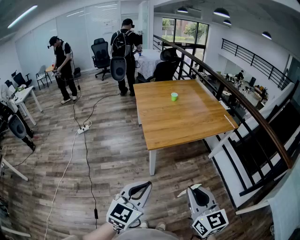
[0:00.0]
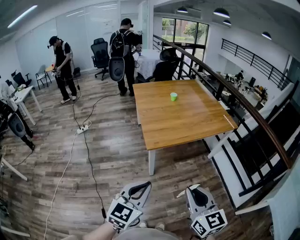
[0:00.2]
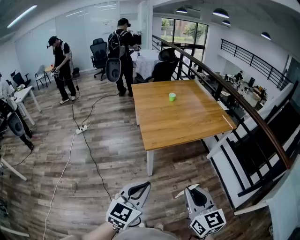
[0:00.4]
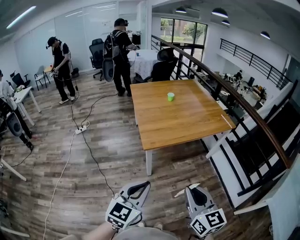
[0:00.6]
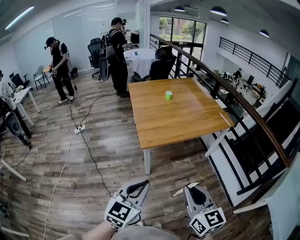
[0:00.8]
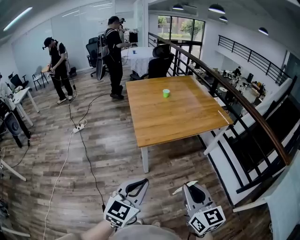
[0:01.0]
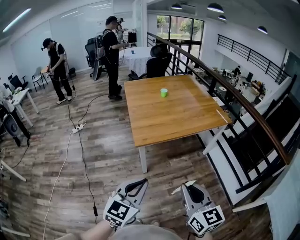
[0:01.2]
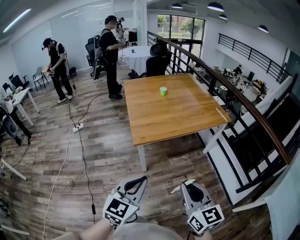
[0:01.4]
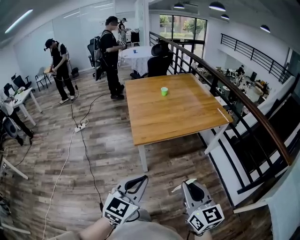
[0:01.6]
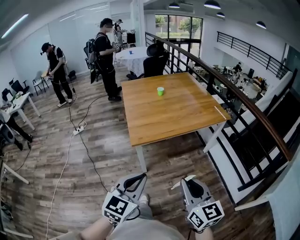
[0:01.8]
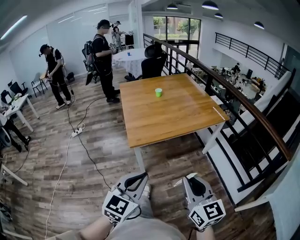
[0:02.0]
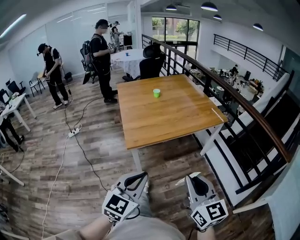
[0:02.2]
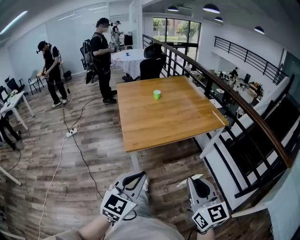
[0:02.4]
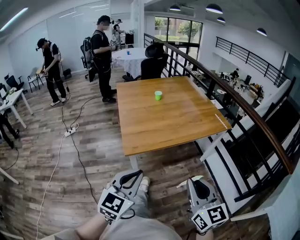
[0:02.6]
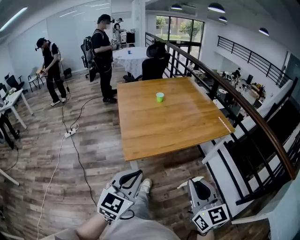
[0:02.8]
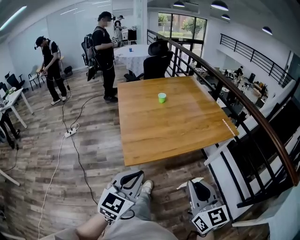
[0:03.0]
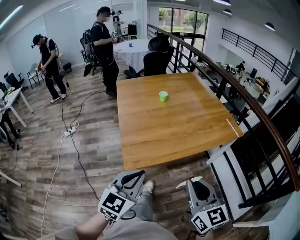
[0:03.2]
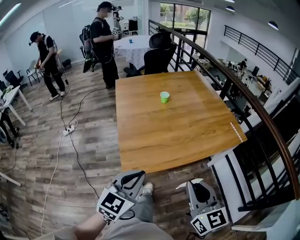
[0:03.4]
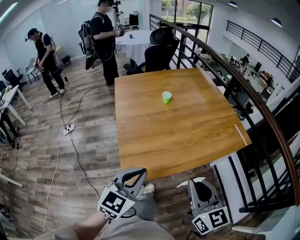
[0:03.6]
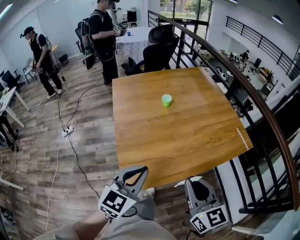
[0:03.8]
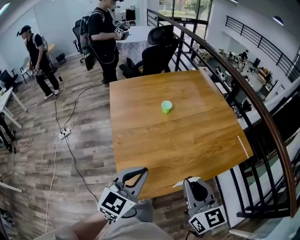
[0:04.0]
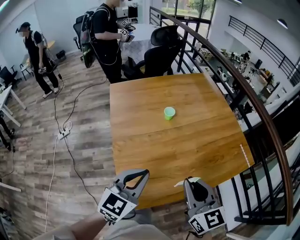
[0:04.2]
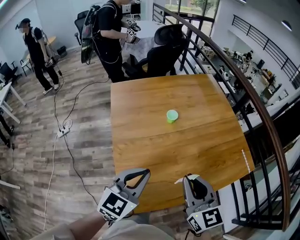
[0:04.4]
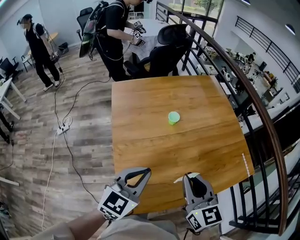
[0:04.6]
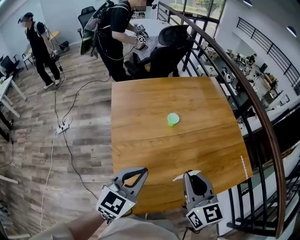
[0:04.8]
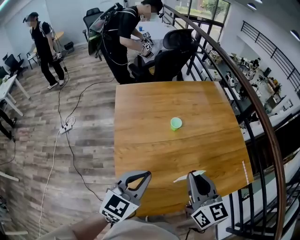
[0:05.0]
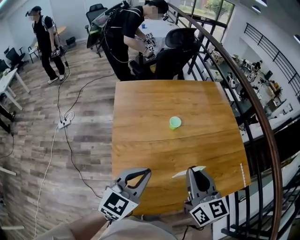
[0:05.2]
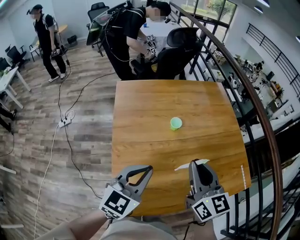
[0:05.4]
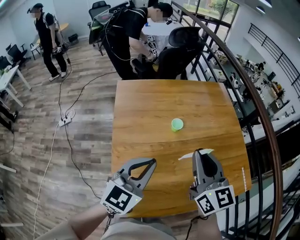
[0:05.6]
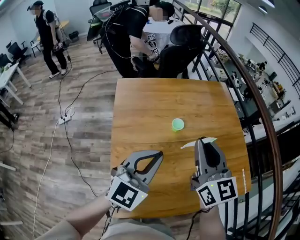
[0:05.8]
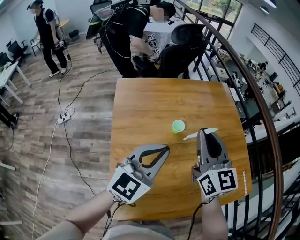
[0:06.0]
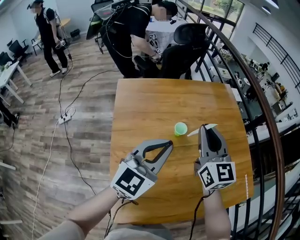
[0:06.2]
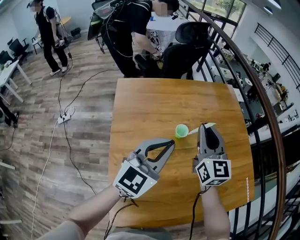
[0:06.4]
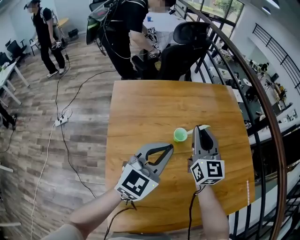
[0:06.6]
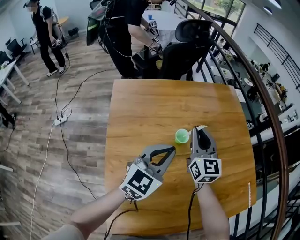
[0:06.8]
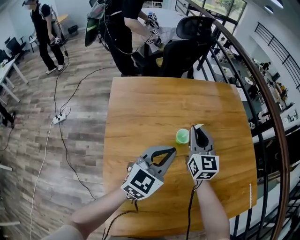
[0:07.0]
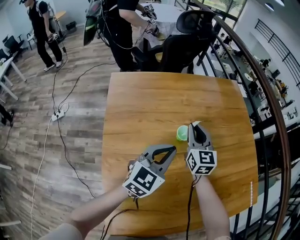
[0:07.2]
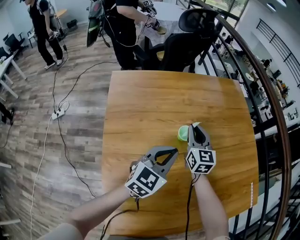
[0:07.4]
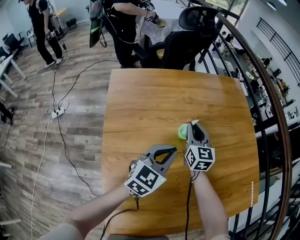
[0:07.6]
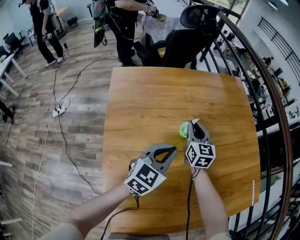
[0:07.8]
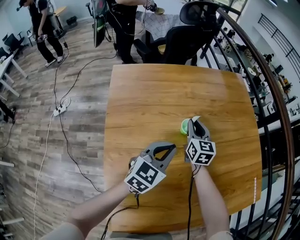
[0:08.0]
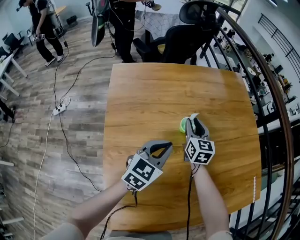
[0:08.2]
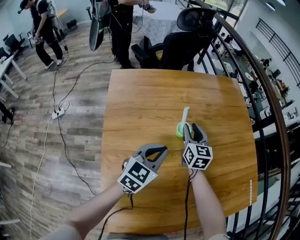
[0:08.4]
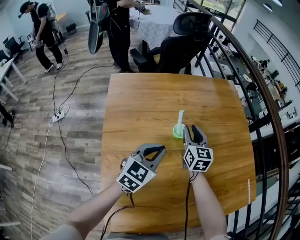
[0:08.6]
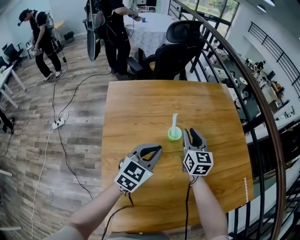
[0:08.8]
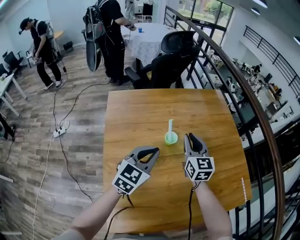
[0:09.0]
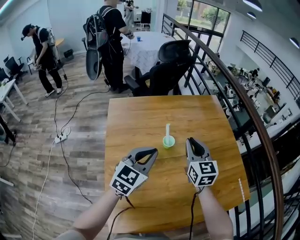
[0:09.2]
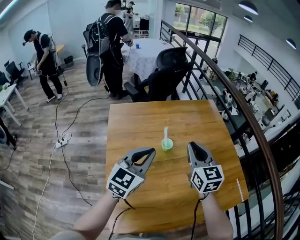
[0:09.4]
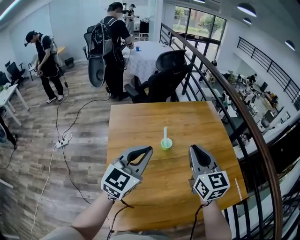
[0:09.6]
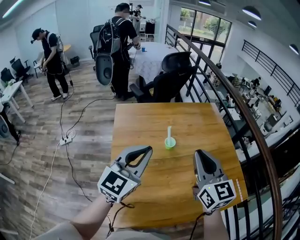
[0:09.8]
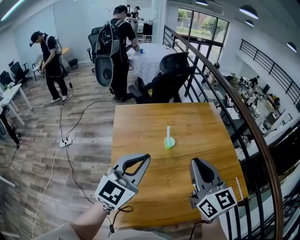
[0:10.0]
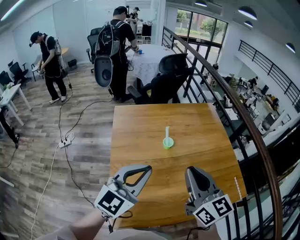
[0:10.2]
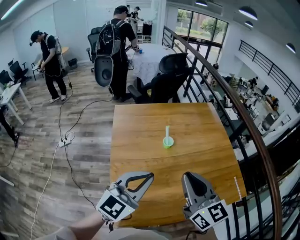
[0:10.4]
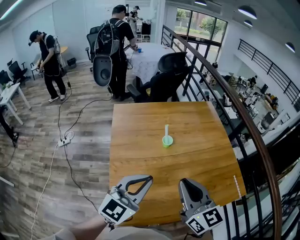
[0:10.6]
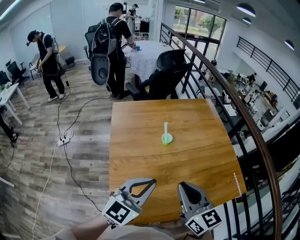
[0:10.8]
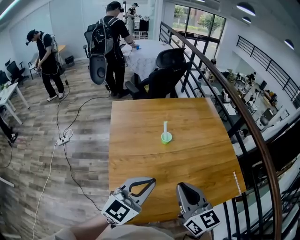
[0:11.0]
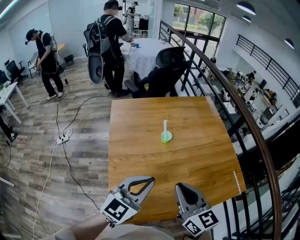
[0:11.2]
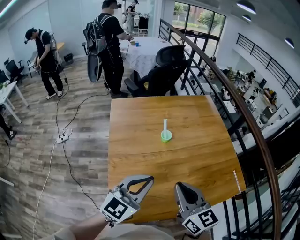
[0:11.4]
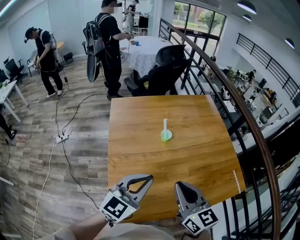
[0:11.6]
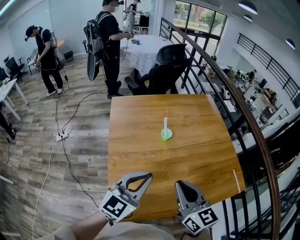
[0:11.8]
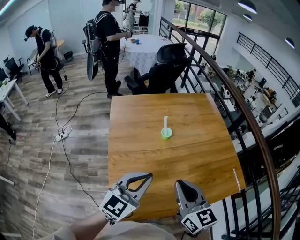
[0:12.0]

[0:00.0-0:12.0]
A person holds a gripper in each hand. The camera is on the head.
0:00.0 to 0:01.6: The two grippers go approximately 10 cm to the right.
0:01.6 to 0:03.0: The grippers both shift forward by about 20 cm.
0:03.0 to 0:04.4: Both grippers are carried forward, approximately 40 cm.
0:04.4 to 0:06.0: The two grippers go some 20 cm forward.
0:06.0 to 0:07.6: The grippers both shift downward and forward by approximately 30 cm.
0:07.6 to 0:09.0: The right gripper is displaced upward, to the right and backward by roughly 15 cm. The left gripper travels upward by some 10 cm.
0:09.0 to 0:10.4: Both grippers travel together backward and upward, about 30 cm.
0:10.4 to 0:12.0: The right gripper moves downward, roughly 5 cm.

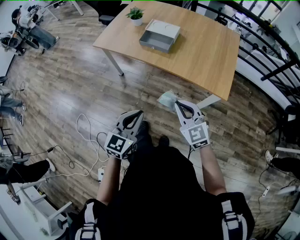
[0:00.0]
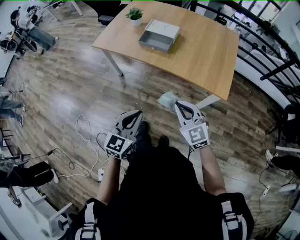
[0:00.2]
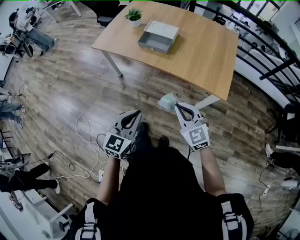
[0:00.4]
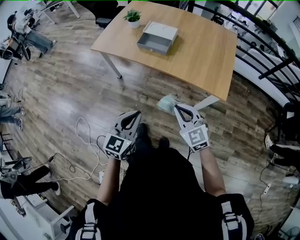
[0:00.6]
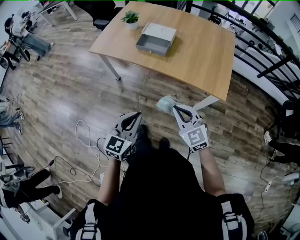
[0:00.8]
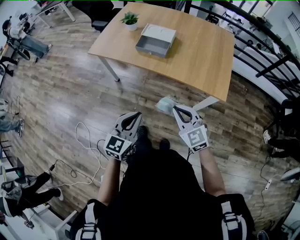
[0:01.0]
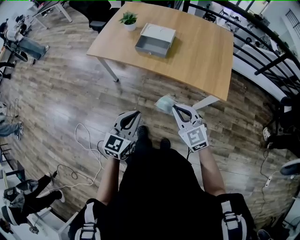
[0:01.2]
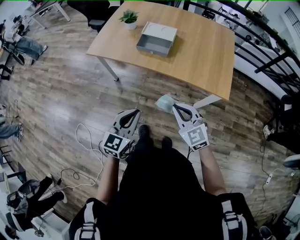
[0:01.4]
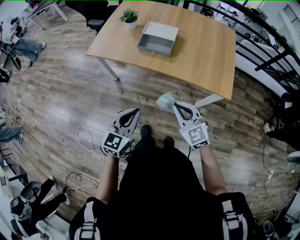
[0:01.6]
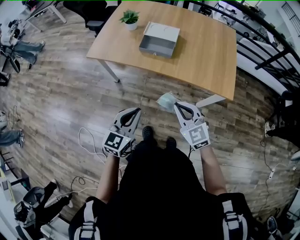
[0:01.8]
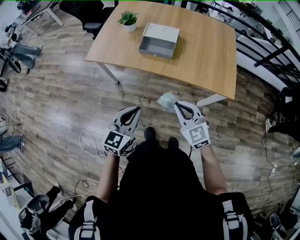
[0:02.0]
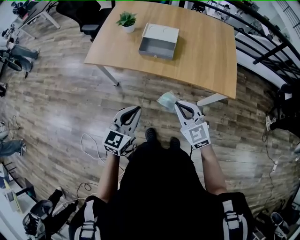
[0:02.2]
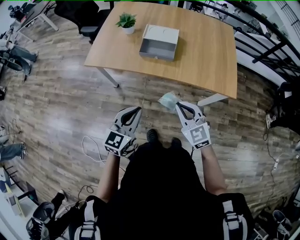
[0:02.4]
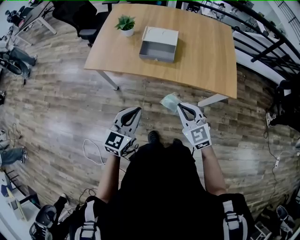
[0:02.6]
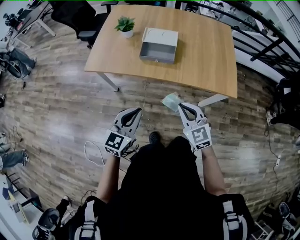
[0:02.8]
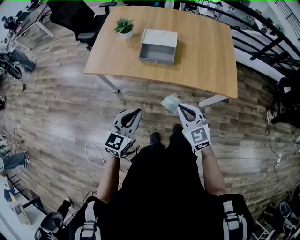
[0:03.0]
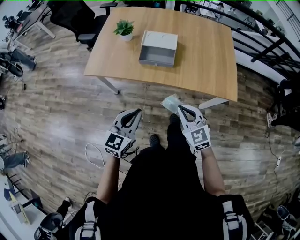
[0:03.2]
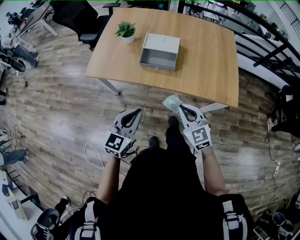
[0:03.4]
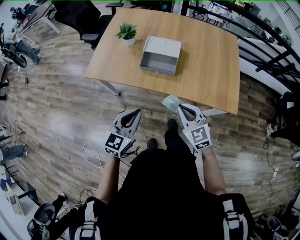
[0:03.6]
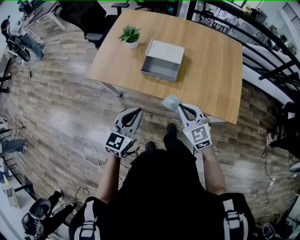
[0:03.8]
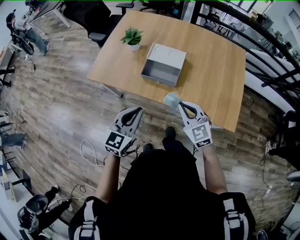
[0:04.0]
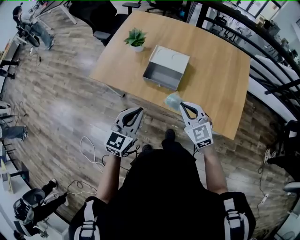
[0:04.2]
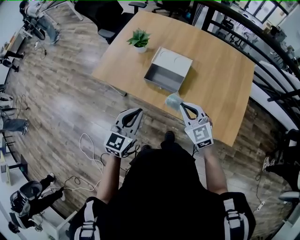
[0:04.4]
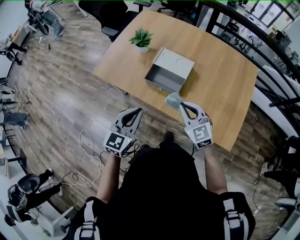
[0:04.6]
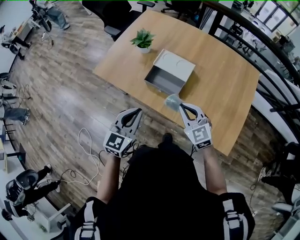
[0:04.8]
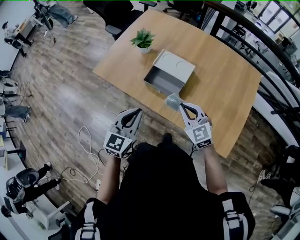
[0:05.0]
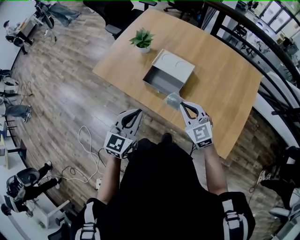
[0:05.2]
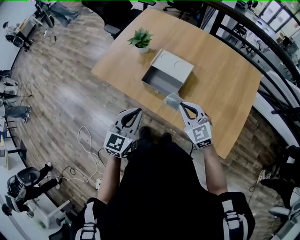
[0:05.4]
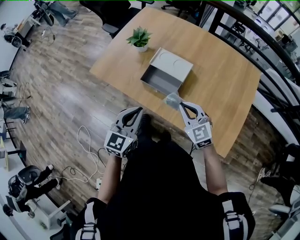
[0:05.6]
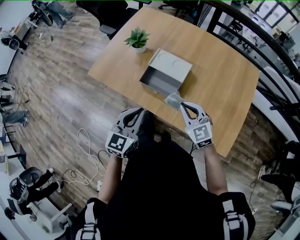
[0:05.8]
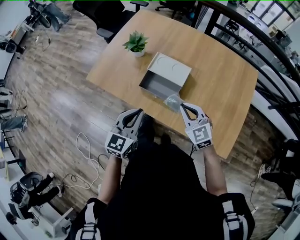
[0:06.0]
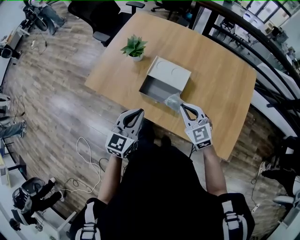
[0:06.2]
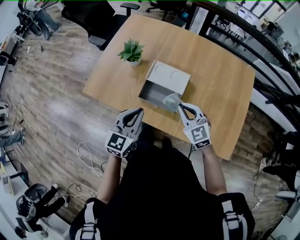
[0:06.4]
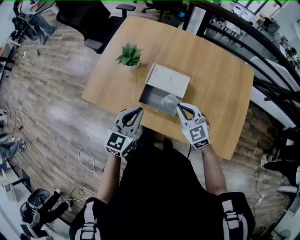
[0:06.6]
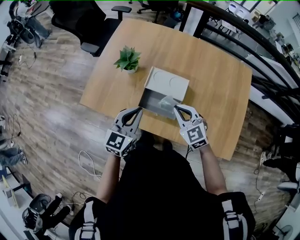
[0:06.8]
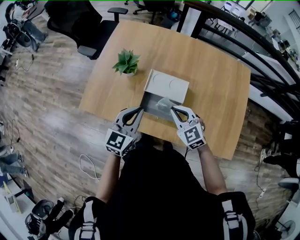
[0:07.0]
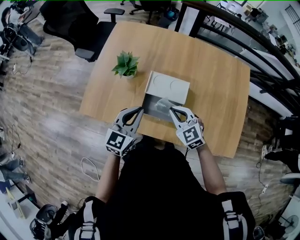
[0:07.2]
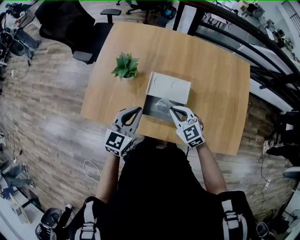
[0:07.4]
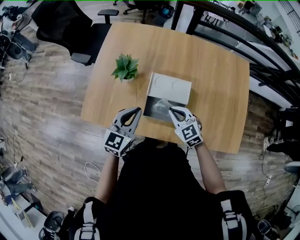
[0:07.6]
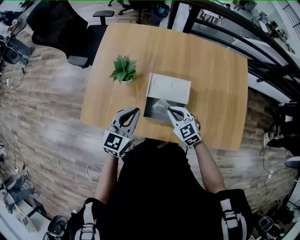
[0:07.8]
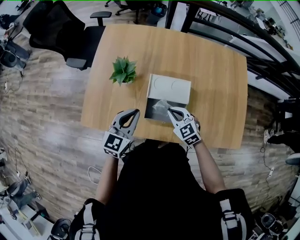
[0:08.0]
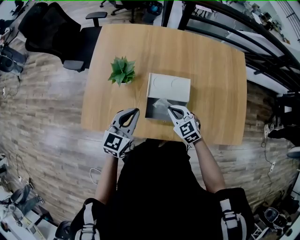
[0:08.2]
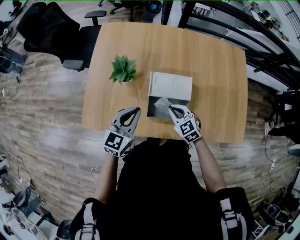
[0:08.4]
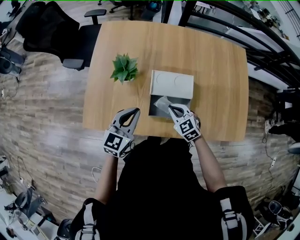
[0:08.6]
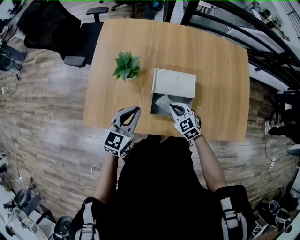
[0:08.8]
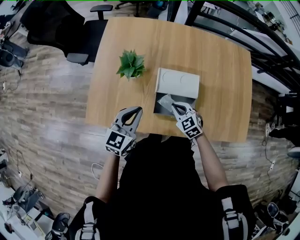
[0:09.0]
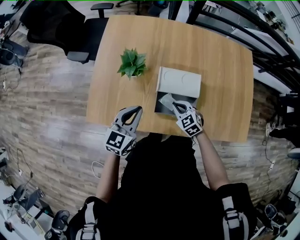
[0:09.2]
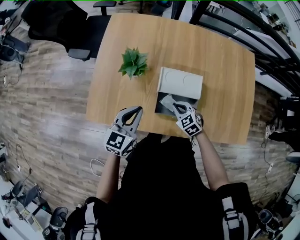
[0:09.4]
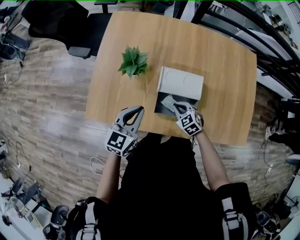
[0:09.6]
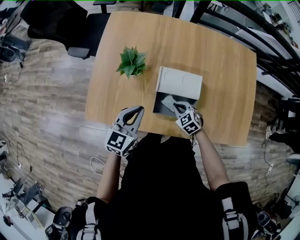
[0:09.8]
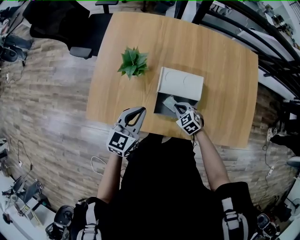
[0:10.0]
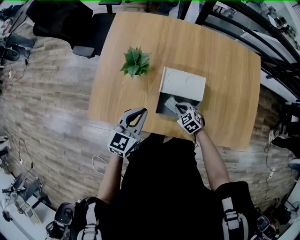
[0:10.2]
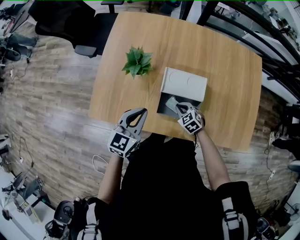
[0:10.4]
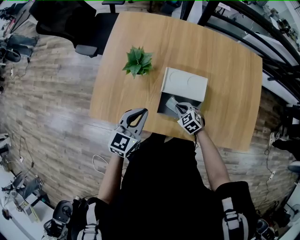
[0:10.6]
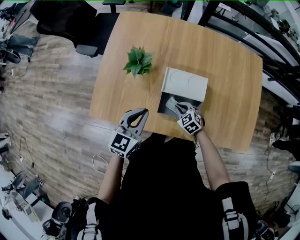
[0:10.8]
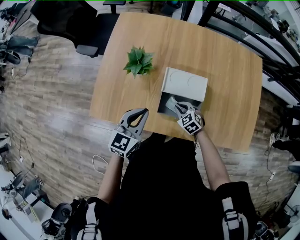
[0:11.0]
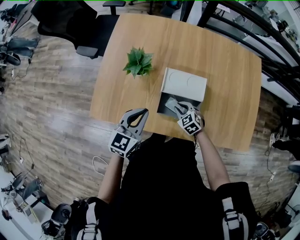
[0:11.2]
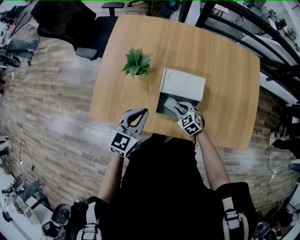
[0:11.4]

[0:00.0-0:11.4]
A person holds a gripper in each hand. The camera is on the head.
0:00.0 to 0:01.4: The left gripper goes roughly 10 cm to the left and forward. The right gripper heads to the left, covering some 5 cm.
0:01.4 to 0:02.8: The right gripper shifts approximately 10 cm to the left and forward. Meanwhile the left gripper shifts about 15 cm forward and to the left.
0:02.8 to 0:04.2: The left gripper moves forward and to the right, approximately 20 cm. Meanwhile the right gripper moves forward, about 20 cm.
0:04.2 to 0:05.6: The left gripper moves to the right, roughly 5 cm, while the right gripper shifts roughly 10 cm forward and to the right.
0:05.6 to 0:07.2: The right gripper travels forward and to the left by roughly 15 cm. Meanwhile the left gripper travels forward by roughly 20 cm.
0:07.2 to 0:08.6: The right gripper shifts some 10 cm downward and to the left, while the left gripper moves to the left, about 5 cm.
0:08.6 to 0:10.0: The right gripper heads downward, covering about 10 cm.
0:10.0 to 0:11.4: There are only small adjustments of the grippers.
